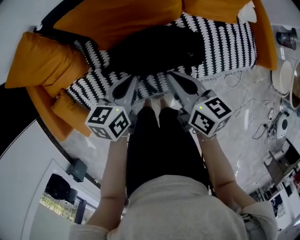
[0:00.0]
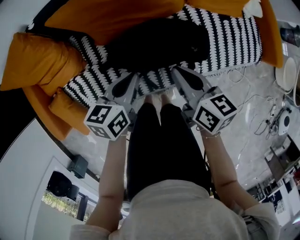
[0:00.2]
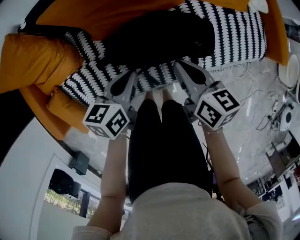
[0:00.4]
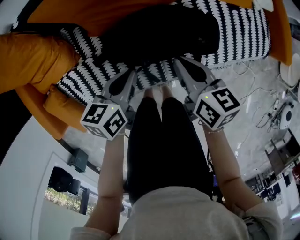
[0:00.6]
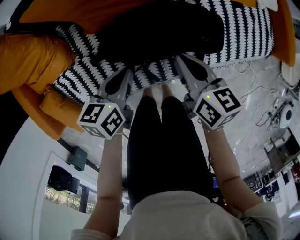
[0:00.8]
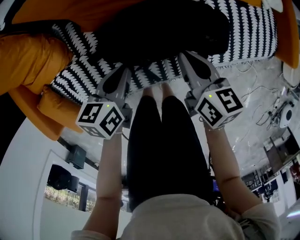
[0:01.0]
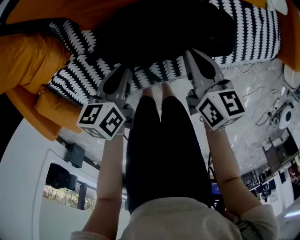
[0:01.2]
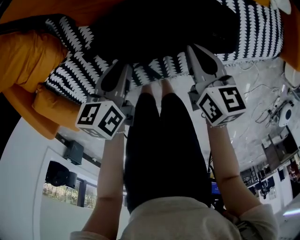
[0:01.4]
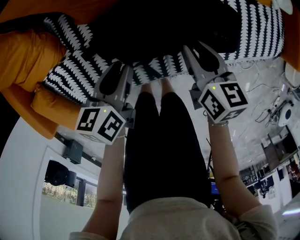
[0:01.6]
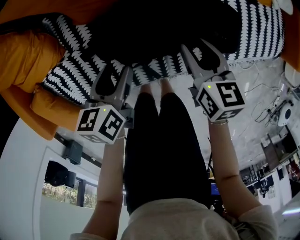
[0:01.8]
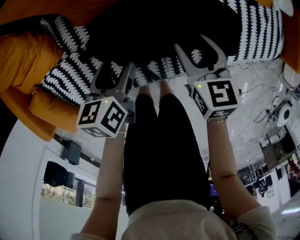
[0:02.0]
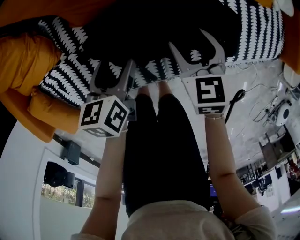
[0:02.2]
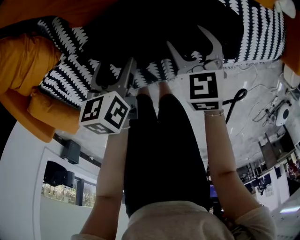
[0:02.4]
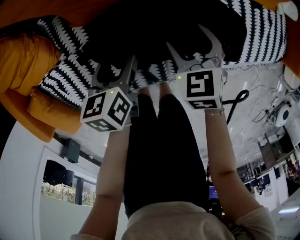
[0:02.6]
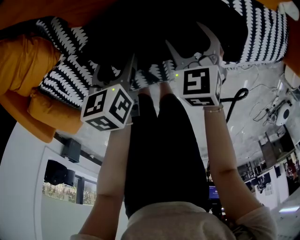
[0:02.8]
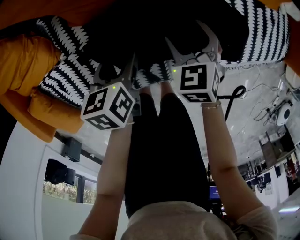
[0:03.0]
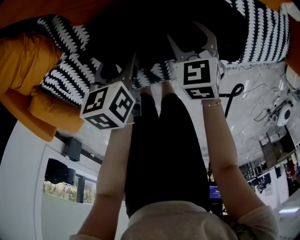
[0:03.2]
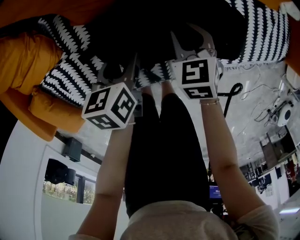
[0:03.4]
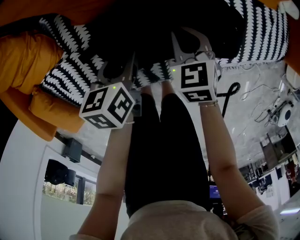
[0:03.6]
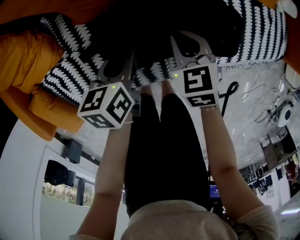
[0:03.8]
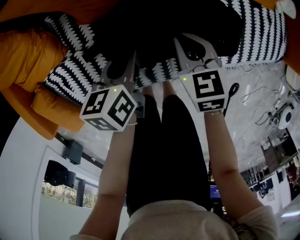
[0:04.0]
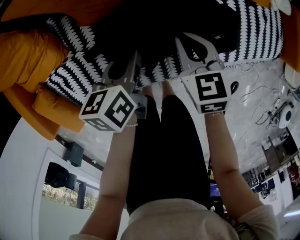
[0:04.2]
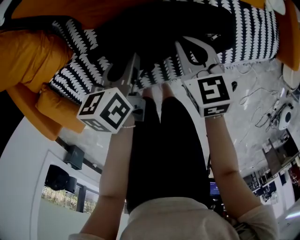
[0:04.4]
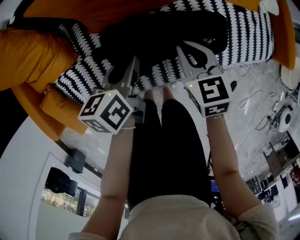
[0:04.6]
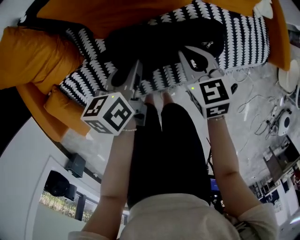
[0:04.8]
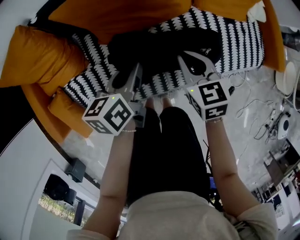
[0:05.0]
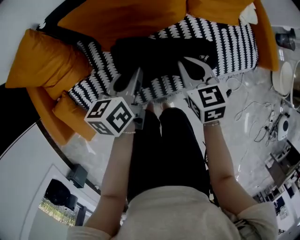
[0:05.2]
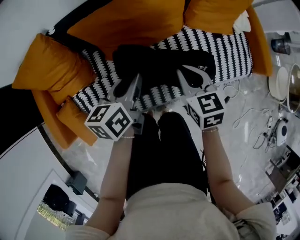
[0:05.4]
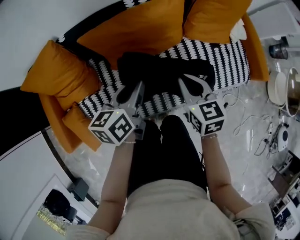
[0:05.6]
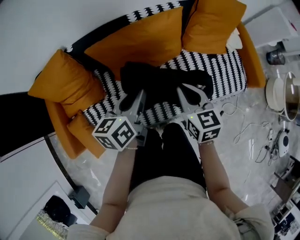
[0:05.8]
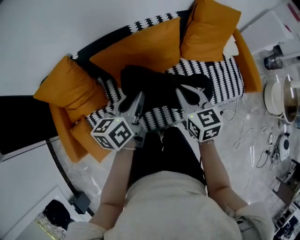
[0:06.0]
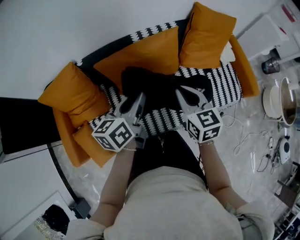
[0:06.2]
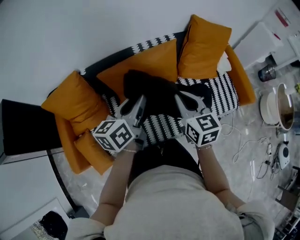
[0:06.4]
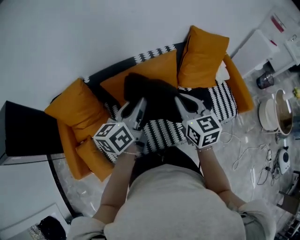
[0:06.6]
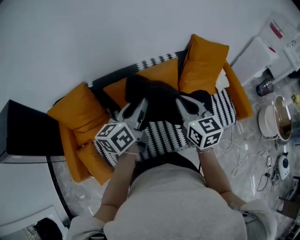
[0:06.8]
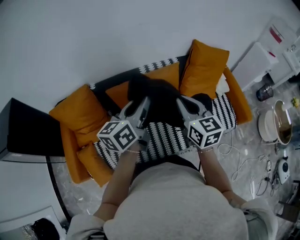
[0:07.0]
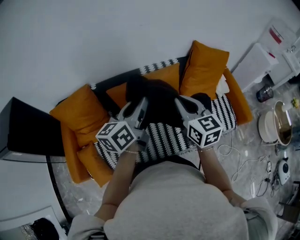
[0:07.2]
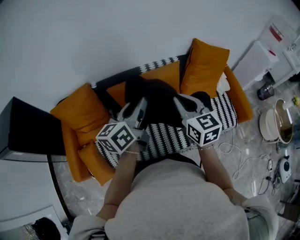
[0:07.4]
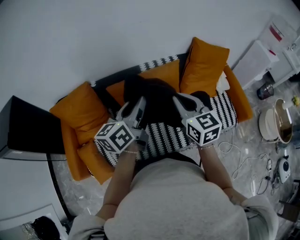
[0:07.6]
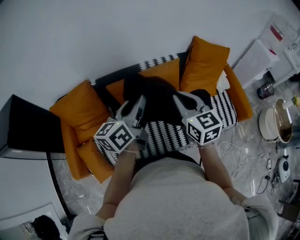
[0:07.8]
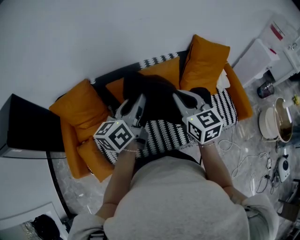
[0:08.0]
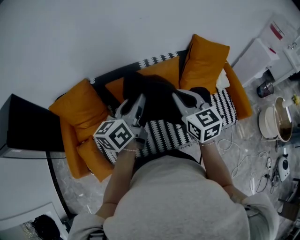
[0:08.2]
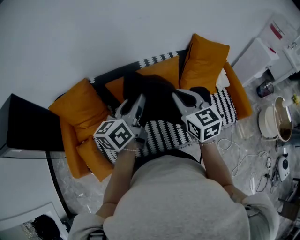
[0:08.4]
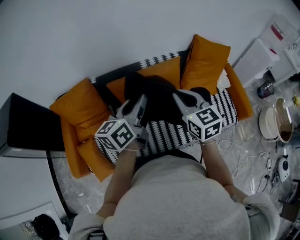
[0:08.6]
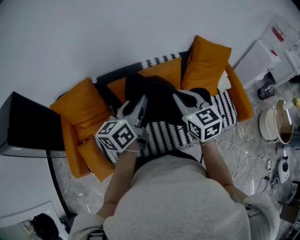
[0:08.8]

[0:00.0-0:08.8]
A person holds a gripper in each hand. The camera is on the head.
0:00.0 to 0:01.4: The two grippers go approximately 15 cm downward.
0:01.4 to 0:03.0: The right gripper moves downward and forward, approximately 10 cm, rolls counterclockwise, seen from behind, by some 40 degrees, and opens its fingers. Meanwhile the left gripper shifts some 5 cm downward, and opens its fingers.
0:03.0 to 0:04.4: The grippers both shift upward by some 10 cm. The right gripper closes, while the left gripper closes its fingers.
0:04.4 to 0:05.8: The grippers both shift upward by approximately 25 cm.
0:05.8 to 0:07.4: Both grippers move upward, approximately 20 cm. The left gripper rotates some 20 degrees.
0:07.4 to 0:08.8: The grippers move only a little.

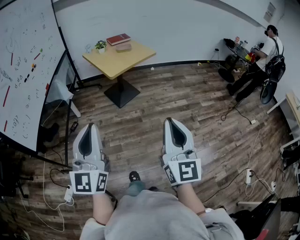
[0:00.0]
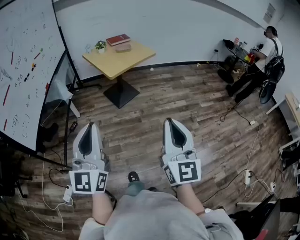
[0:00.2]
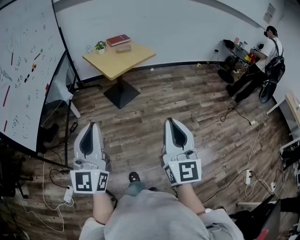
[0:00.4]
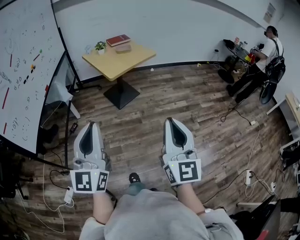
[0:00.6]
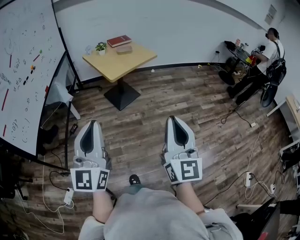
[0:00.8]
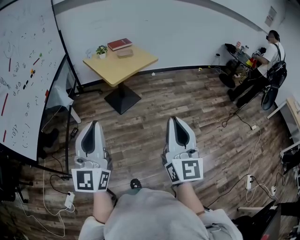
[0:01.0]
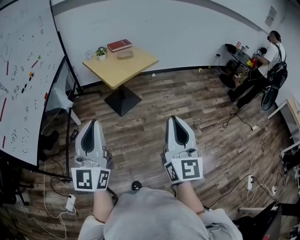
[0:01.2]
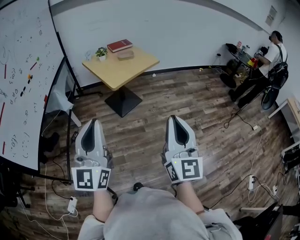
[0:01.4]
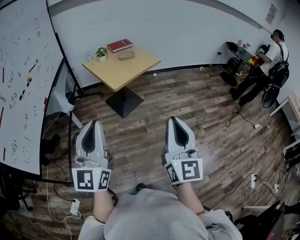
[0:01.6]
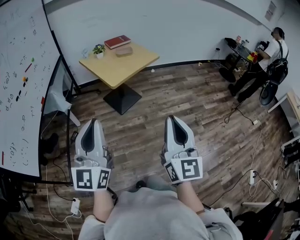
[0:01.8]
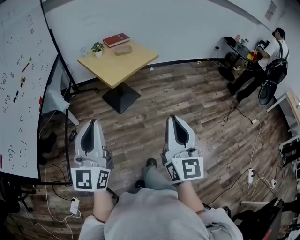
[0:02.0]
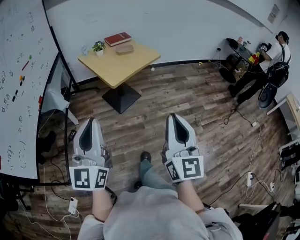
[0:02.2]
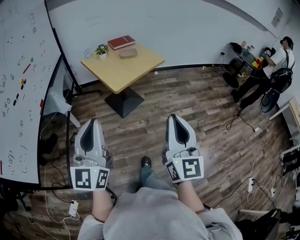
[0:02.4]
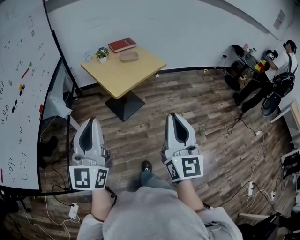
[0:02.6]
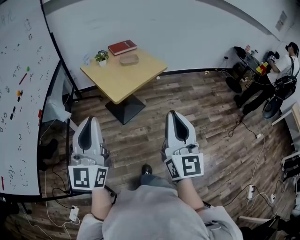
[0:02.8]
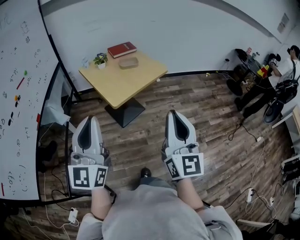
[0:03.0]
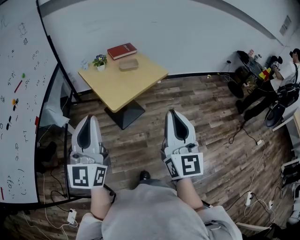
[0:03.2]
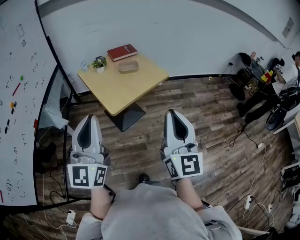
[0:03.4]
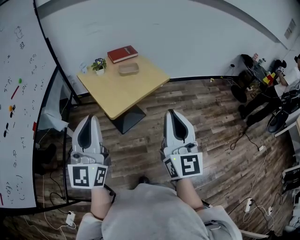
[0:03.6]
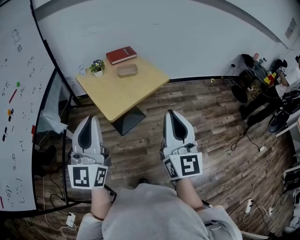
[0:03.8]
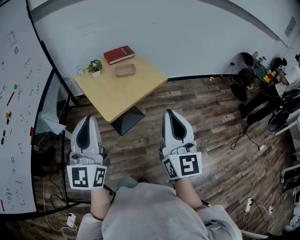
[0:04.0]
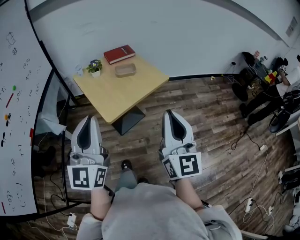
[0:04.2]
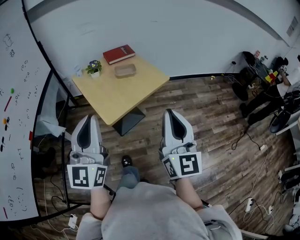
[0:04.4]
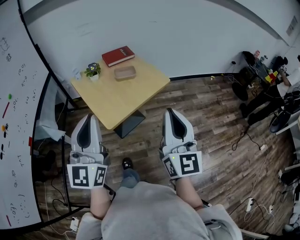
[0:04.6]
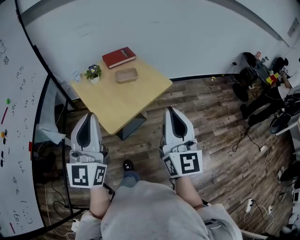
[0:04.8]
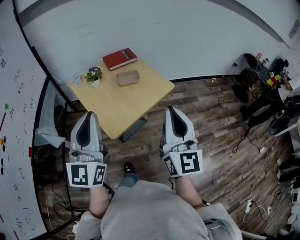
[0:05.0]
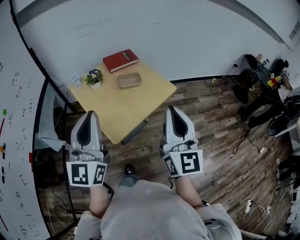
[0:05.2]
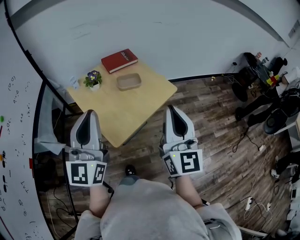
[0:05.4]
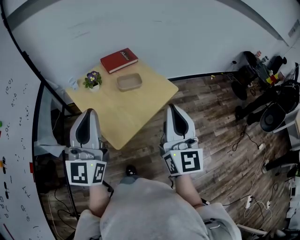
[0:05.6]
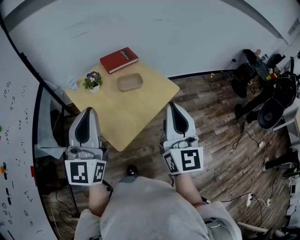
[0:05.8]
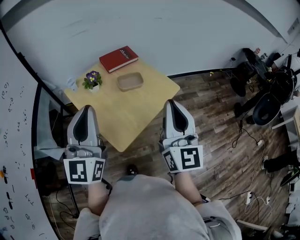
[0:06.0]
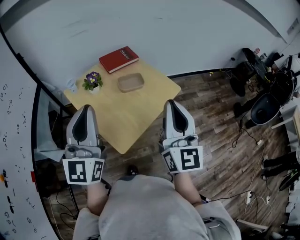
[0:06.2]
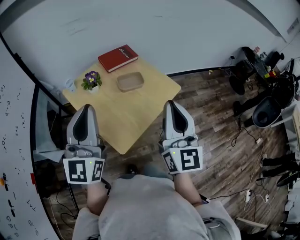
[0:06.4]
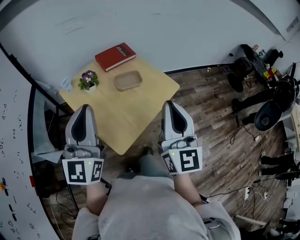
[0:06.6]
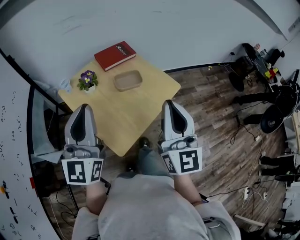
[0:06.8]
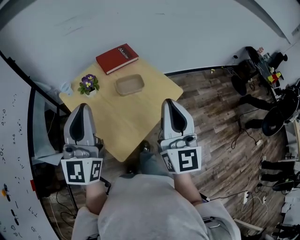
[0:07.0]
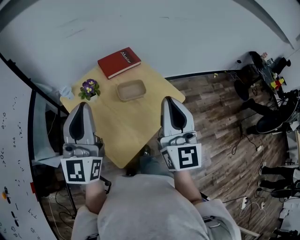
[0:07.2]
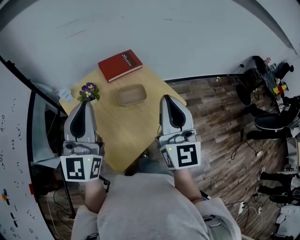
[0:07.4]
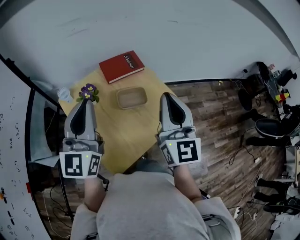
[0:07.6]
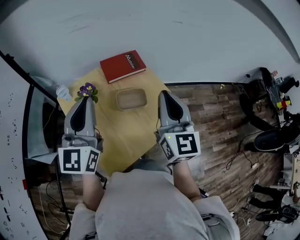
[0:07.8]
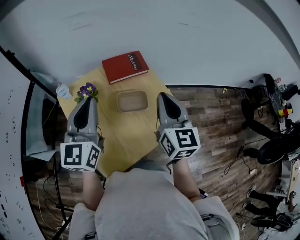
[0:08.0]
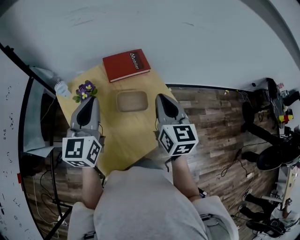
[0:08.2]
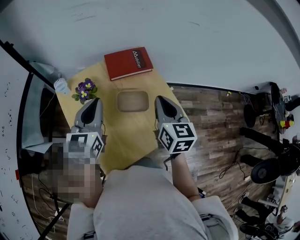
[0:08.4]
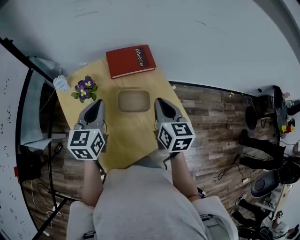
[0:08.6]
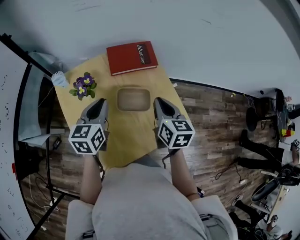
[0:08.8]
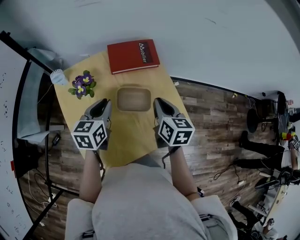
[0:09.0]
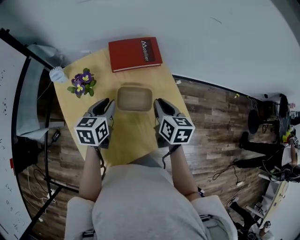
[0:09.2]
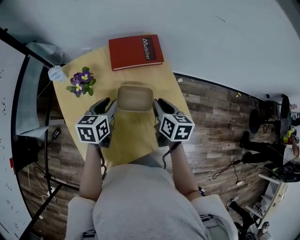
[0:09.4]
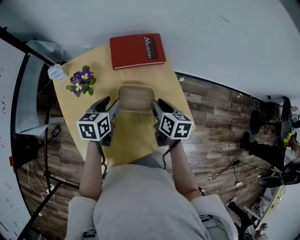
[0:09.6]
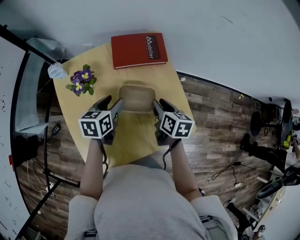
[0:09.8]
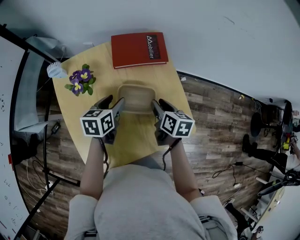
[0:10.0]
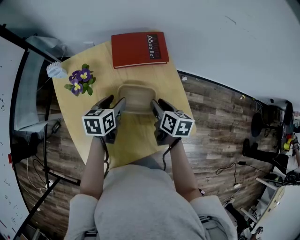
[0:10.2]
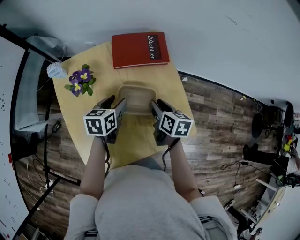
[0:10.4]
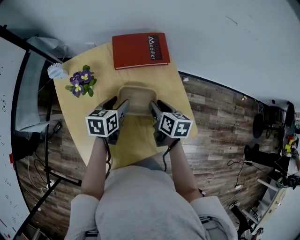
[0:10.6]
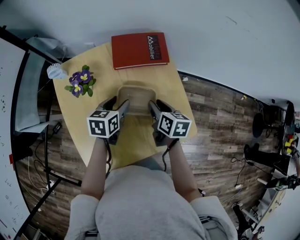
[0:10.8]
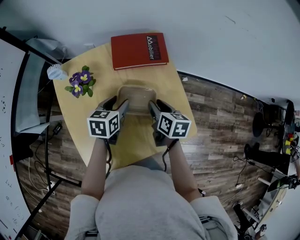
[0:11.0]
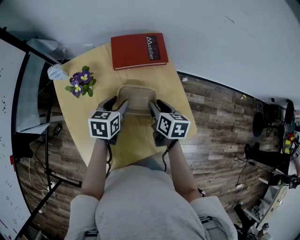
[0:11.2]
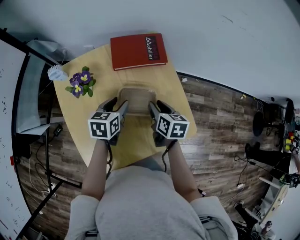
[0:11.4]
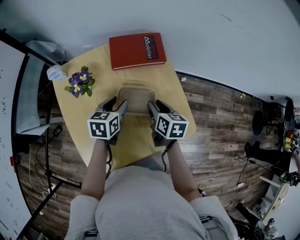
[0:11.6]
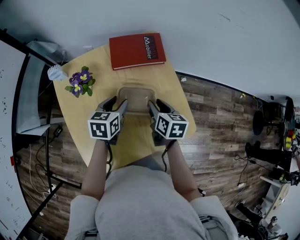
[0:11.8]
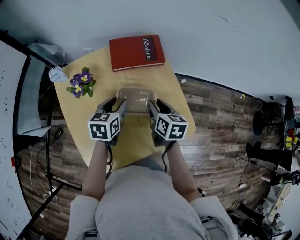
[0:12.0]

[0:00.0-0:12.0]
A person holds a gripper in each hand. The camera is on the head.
0:00.0 to 0:01.6: The grippers both shift forward by approximately 15 cm.
0:01.6 to 0:03.0: The grippers both shift forward by about 20 cm.
0:03.0 to 0:04.4: Both grippers move forward, approximately 15 cm.
0:04.4 to 0:06.0: The grippers both shift forward and to the left by roughly 25 cm.
0:06.0 to 0:07.6: Both grippers move forward, about 20 cm.
0:07.6 to 0:09.0: Both grippers move downward and forward, roughly 30 cm. The right gripper tilts its fingers about 40 degrees downward. Meanwhile the left gripper points its fingers about 40 degrees further downward.
0:09.0 to 0:10.4: The grippers both shift downward by some 10 cm. The left gripper opens its fingers; the right gripper opens up.
0:10.4 to 0:12.0: The grippers stay close to where they were, moving slightly.

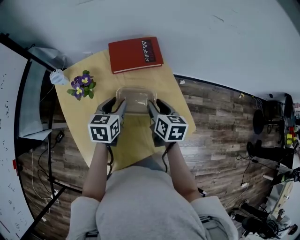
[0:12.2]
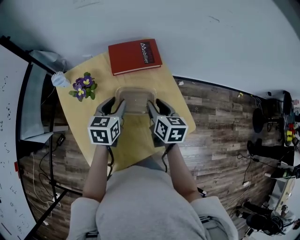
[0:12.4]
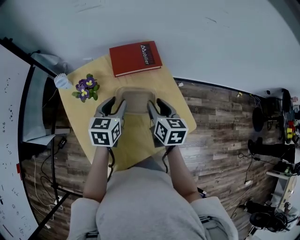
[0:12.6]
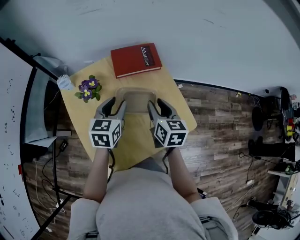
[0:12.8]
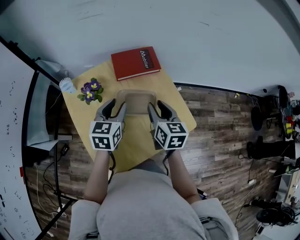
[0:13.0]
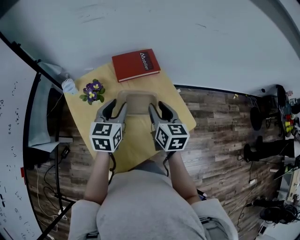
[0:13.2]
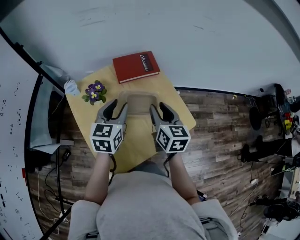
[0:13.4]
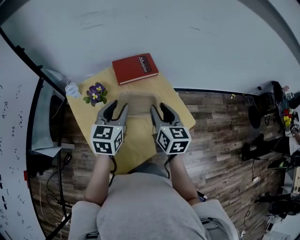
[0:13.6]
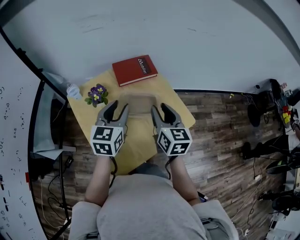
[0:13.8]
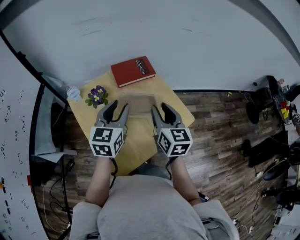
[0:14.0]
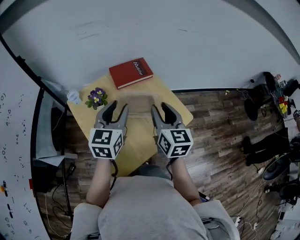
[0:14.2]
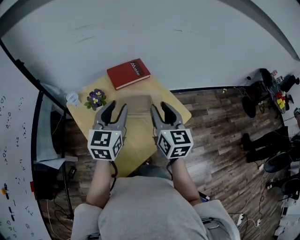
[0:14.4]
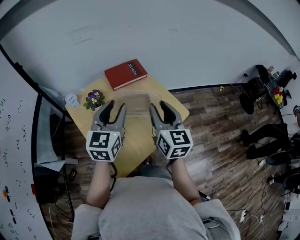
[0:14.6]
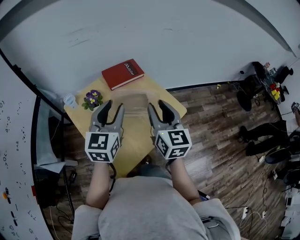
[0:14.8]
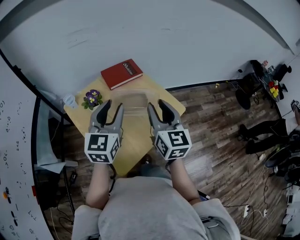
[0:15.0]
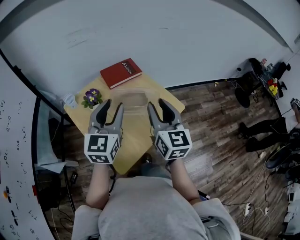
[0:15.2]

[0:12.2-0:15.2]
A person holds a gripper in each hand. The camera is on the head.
0:12.2 to 0:13.8: The left gripper moves upward, about 15 cm, and swivels approximately 30 degrees. The right gripper moves upward and backward, some 20 cm, and rotates roughly 30 degrees.
0:13.8 to 0:15.2: The right gripper heads backward and upward, covering approximately 15 cm. Meanwhile the left gripper is displaced upward and backward by roughly 15 cm.
